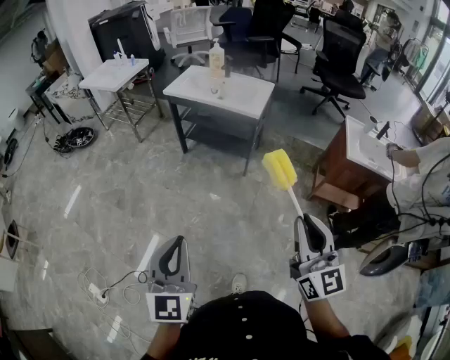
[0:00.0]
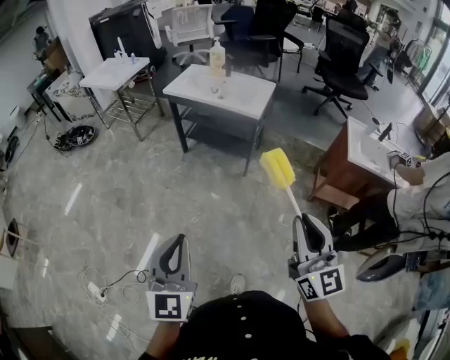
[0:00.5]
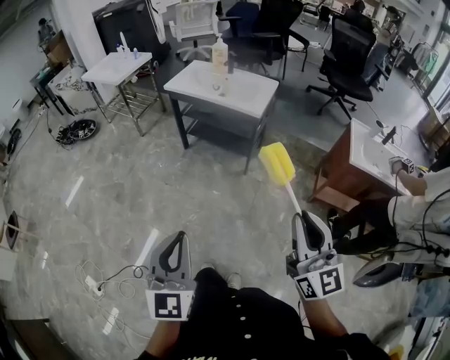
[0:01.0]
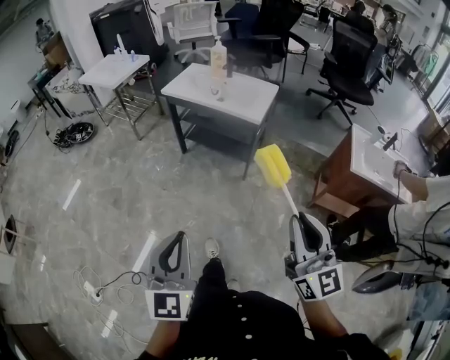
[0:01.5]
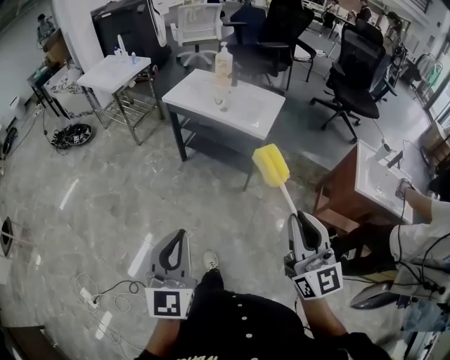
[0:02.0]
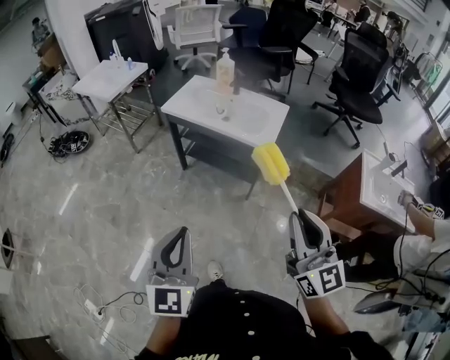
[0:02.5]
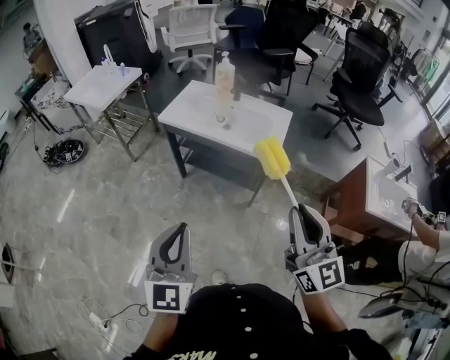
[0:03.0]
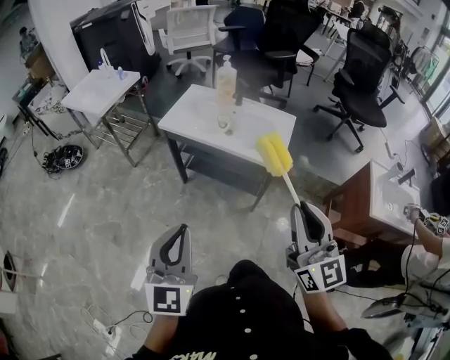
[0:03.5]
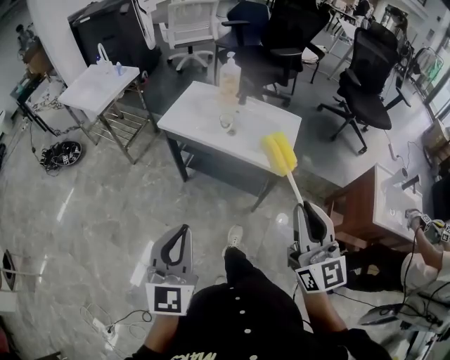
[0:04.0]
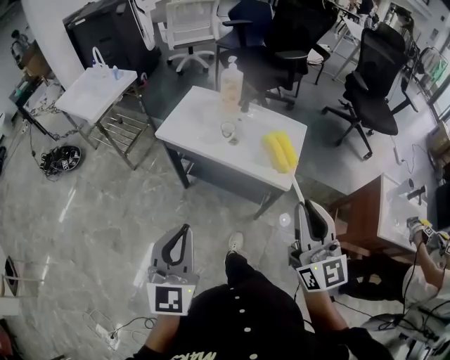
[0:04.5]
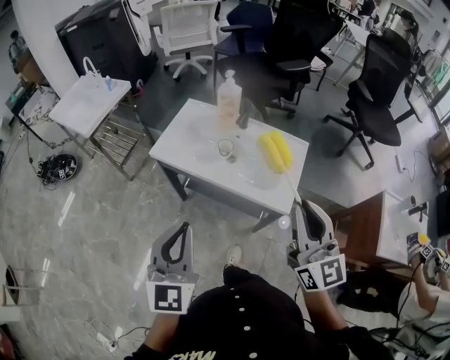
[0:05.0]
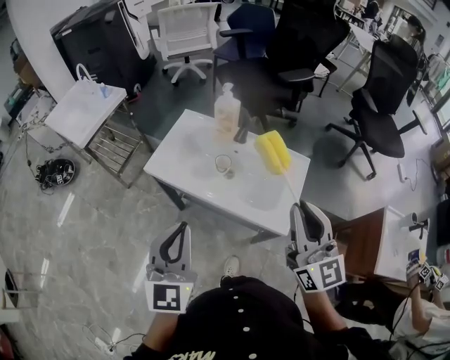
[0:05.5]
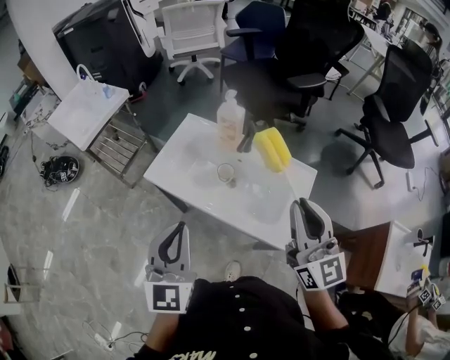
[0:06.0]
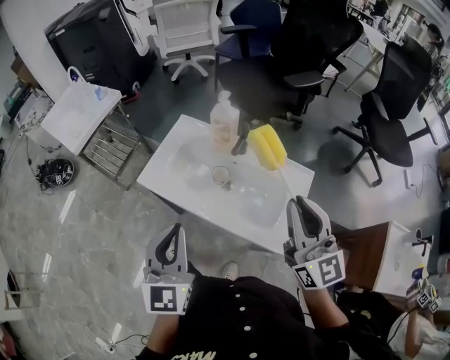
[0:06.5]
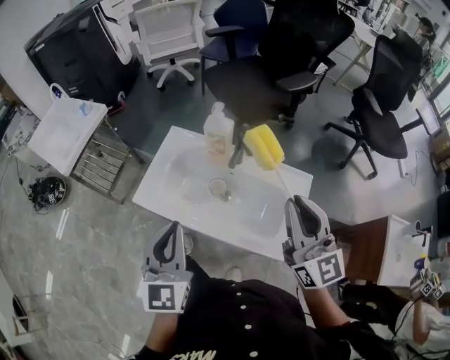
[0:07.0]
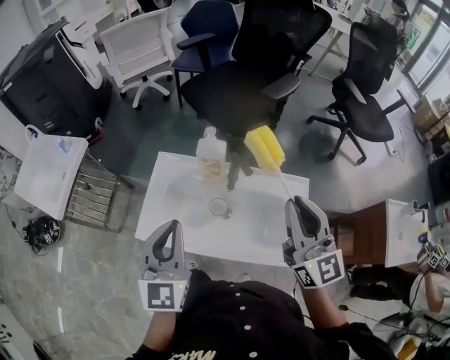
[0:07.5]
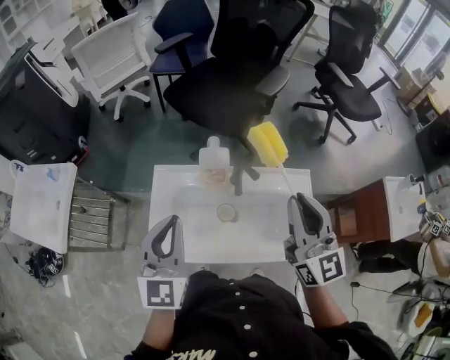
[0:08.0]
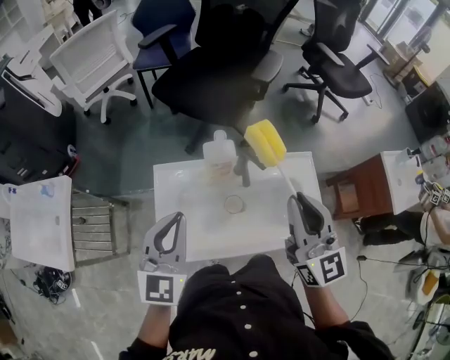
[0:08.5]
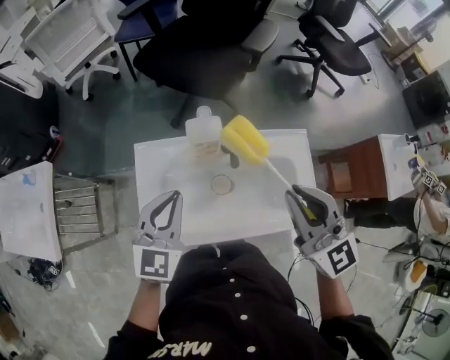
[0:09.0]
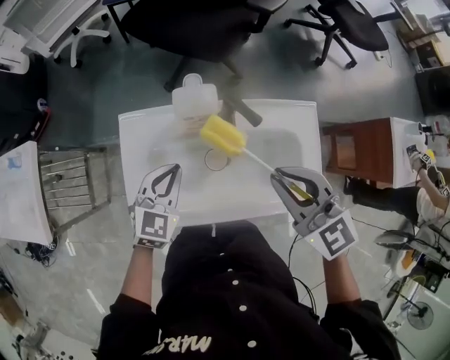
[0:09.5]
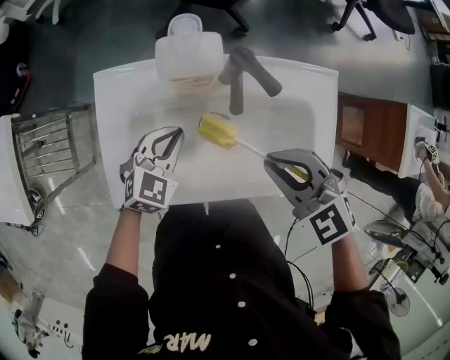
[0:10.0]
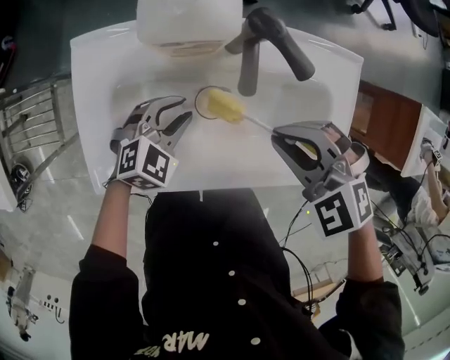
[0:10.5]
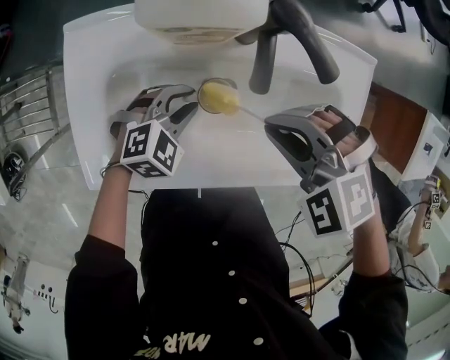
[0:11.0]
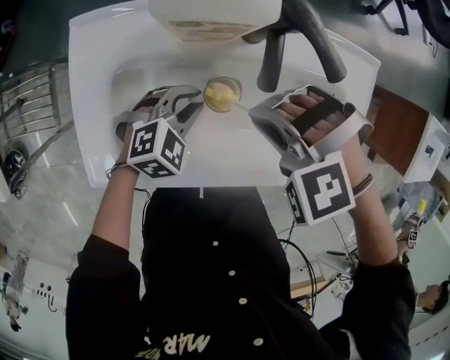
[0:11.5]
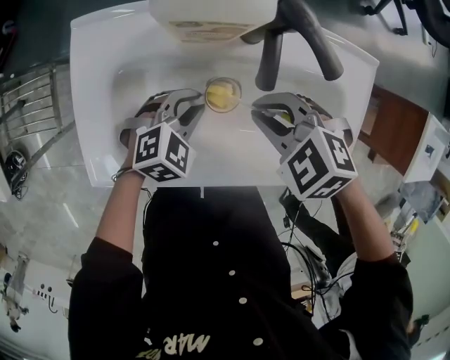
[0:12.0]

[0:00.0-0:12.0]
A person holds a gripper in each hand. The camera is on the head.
0:00.0 to 0:02.0: The grippers both shift forward by approximately 20 cm.
0:02.0 to 0:04.0: Both grippers move forward, approximately 30 cm.
0:04.0 to 0:06.0: Both grippers move forward, some 35 cm.
0:06.0 to 0:08.0: The left gripper moves some 30 cm, and changes its angle by some 30 degrees, while the right gripper shifts by roughly 20 cm, and swivels roughly 30 degrees.
0:08.0 to 0:10.0: The two grippers go some 30 cm downward. The right gripper tilts its fingers about 50 degrees downward, while the left gripper tips its fingers downward by roughly 40 degrees.
0:10.0 to 0:12.0: The grippers both shift downward by roughly 10 cm. The right gripper rotates some 30 degrees.

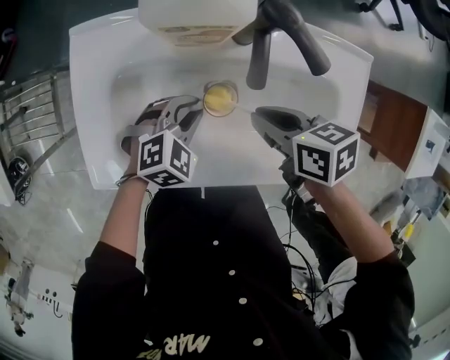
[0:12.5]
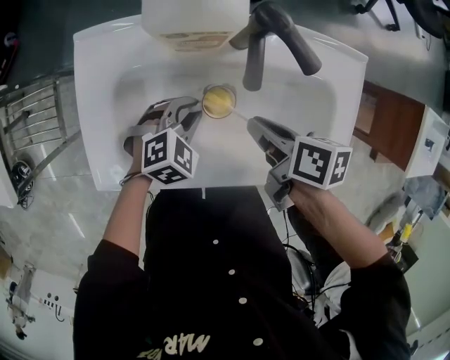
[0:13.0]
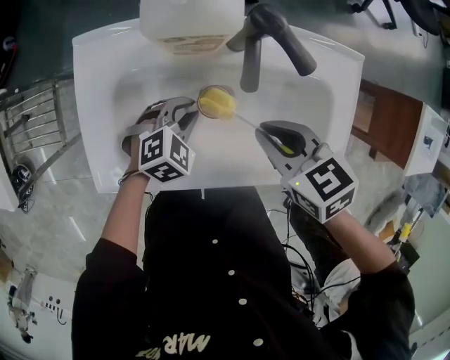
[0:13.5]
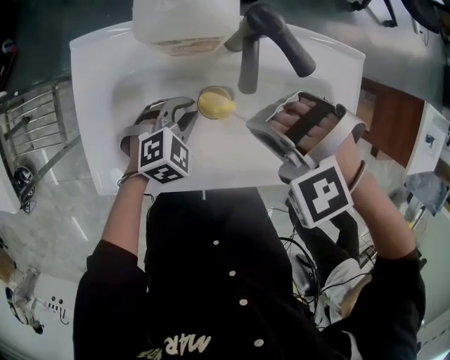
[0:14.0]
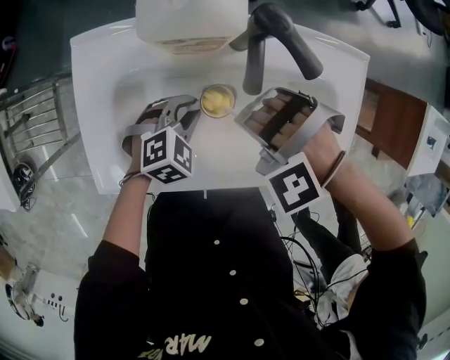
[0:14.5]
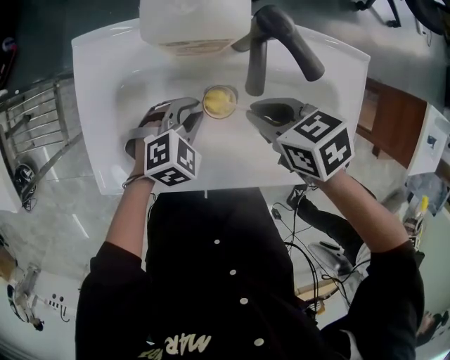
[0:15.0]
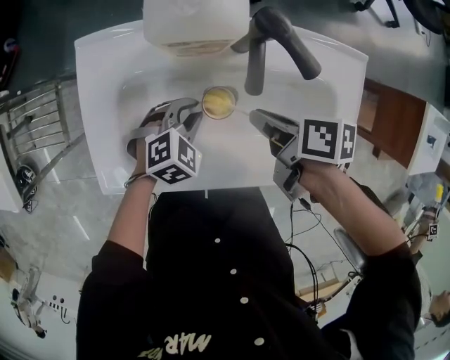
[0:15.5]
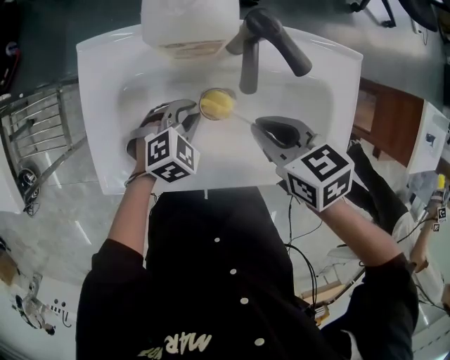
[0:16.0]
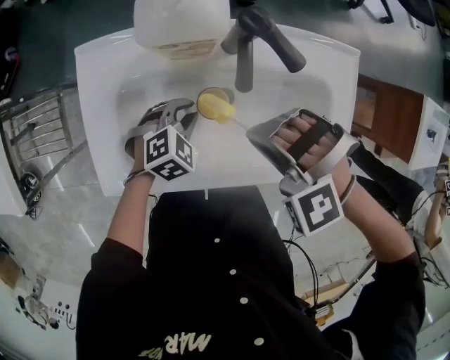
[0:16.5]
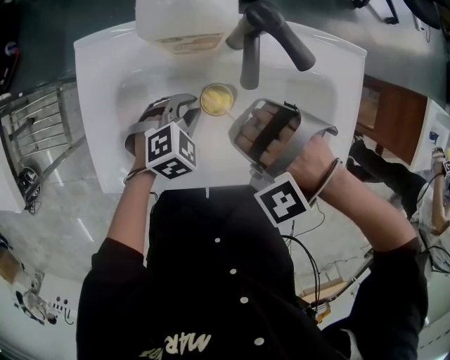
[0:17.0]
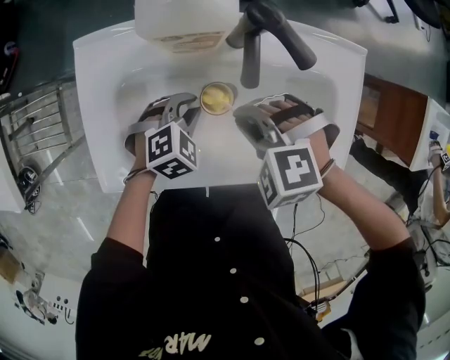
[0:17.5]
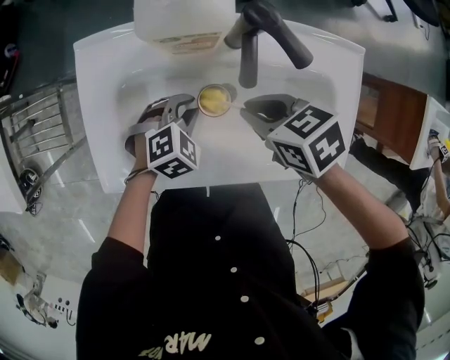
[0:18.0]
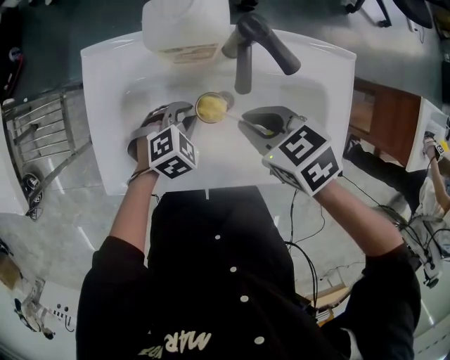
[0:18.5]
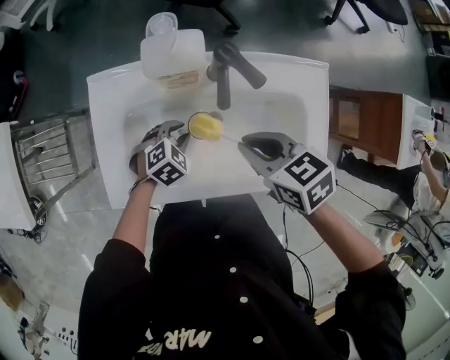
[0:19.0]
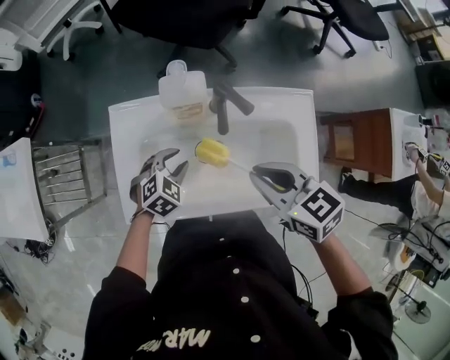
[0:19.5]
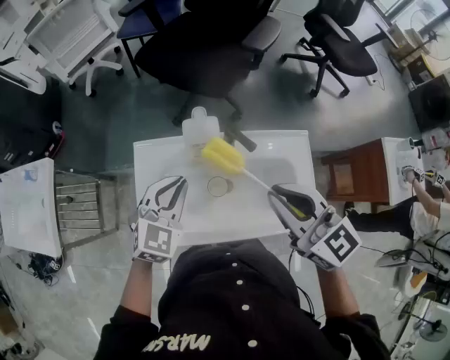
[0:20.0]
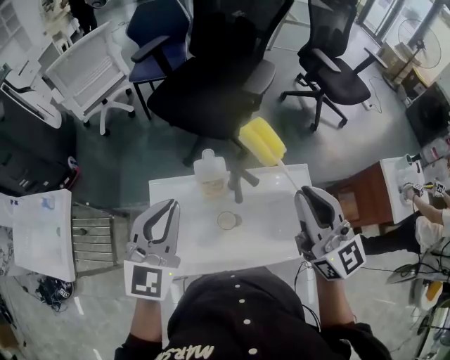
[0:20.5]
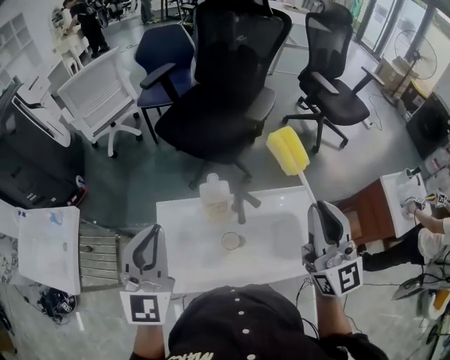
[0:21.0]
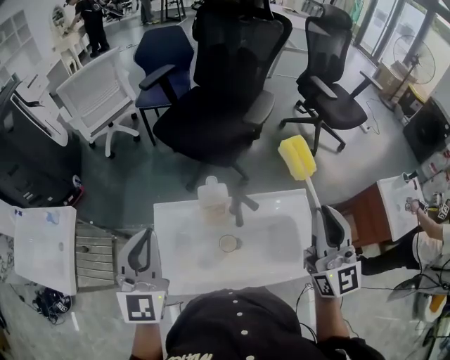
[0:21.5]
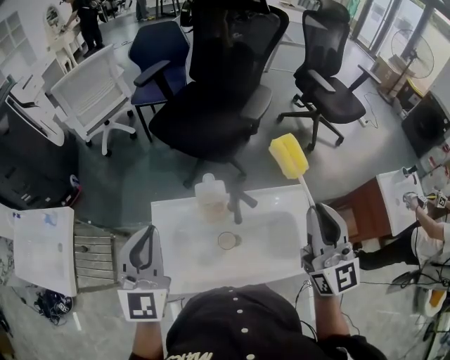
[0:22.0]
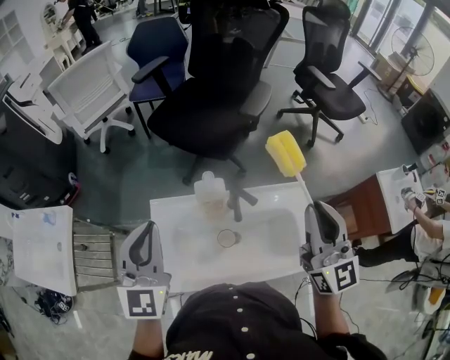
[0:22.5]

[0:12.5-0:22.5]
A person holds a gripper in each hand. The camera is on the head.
0:12.5 to 0:14.5: The right gripper shifts by about 5 cm, and twists approximately 120 degrees counterclockwise, seen from behind.
0:14.5 to 0:16.5: The right gripper travels upward by about 5 cm.
0:16.5 to 0:18.5: The right gripper rotates around the line of its fingers by roughly 80 degrees, clockwise from behind.
0:18.5 to 0:20.5: The two grippers go about 40 cm upward. The right gripper tilts its fingers about 60 degrees upward, while the left gripper tilts its fingers approximately 60 degrees upward.
0:20.5 to 0:22.5: The left gripper moves to the left, roughly 5 cm.

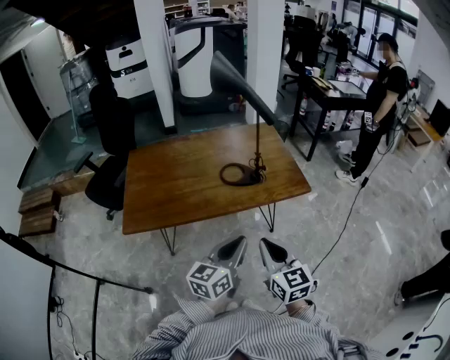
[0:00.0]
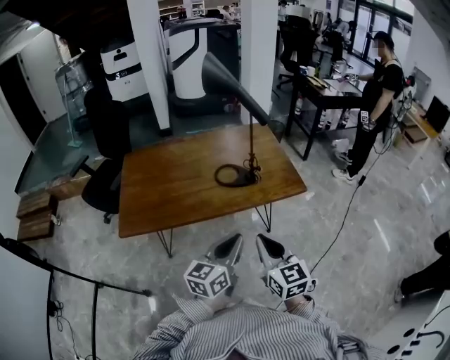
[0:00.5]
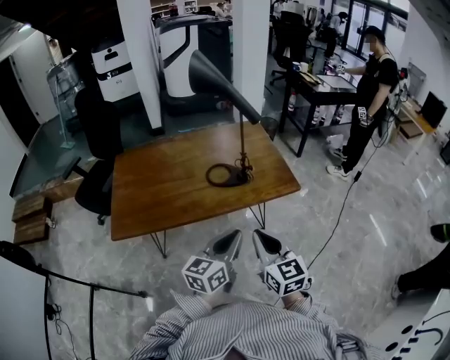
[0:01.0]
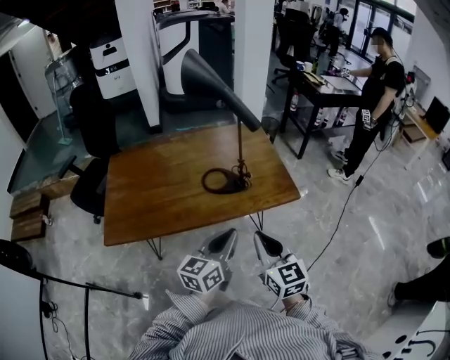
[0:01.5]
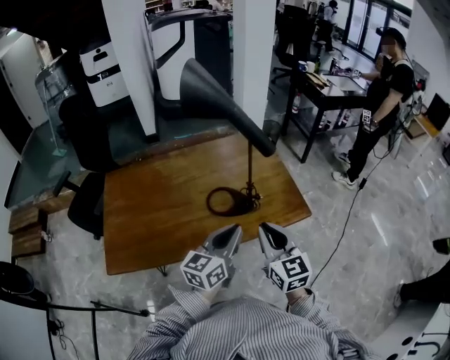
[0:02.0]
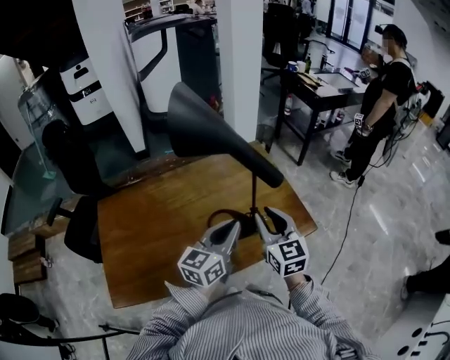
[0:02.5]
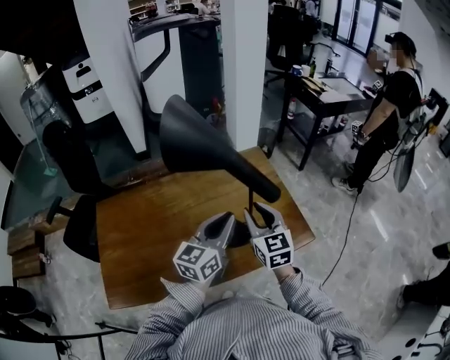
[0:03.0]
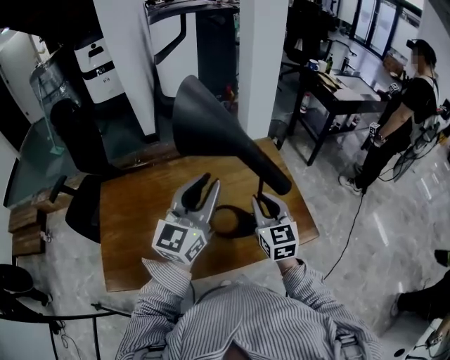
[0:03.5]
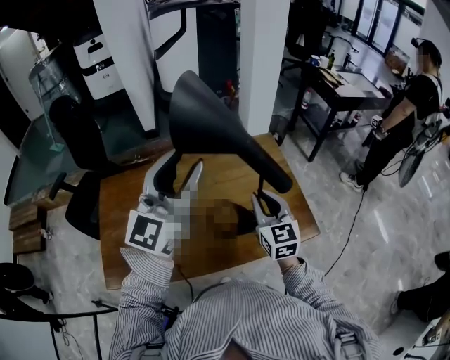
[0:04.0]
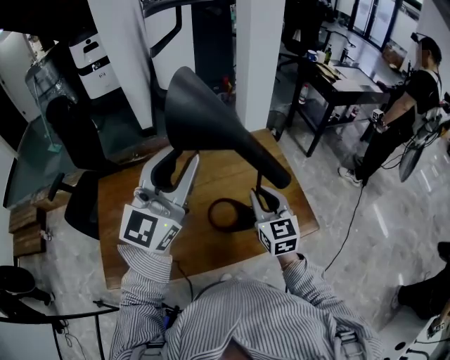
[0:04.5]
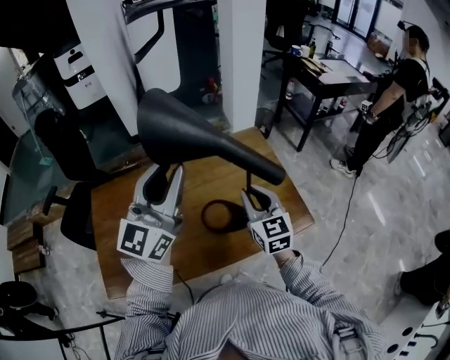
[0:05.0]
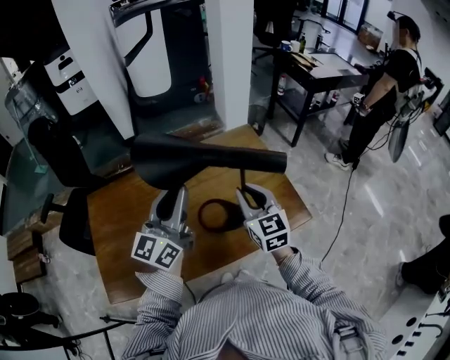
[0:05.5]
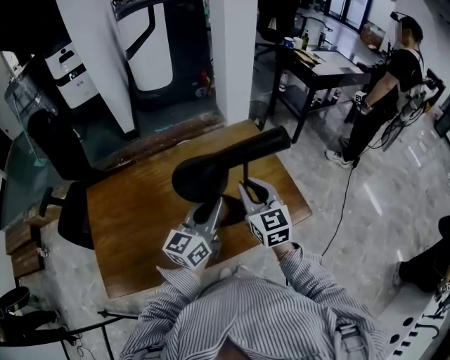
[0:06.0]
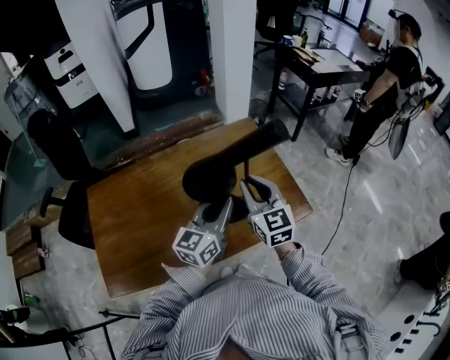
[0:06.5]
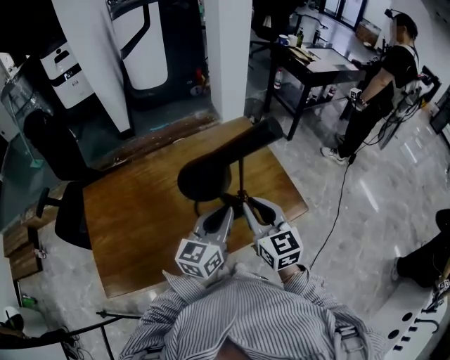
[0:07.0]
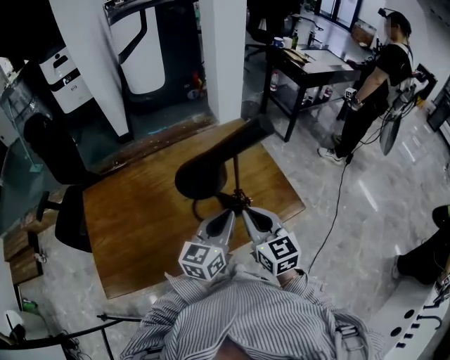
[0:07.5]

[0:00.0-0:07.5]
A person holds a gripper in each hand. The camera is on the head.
0:00.0 to 0:02.0: Both grippers move forward, roughly 25 cm.
0:02.0 to 0:04.0: The right gripper travels forward by roughly 20 cm. Meanwhile the left gripper heads upward, forward and to the left, covering approximately 30 cm, swivels approximately 40 degrees, and opens its fingers.
0:04.0 to 0:05.5: The left gripper goes some 10 cm downward, changes its angle by roughly 20 degrees, and closes up.
0:05.5 to 0:07.5: The left gripper moves to the right, downward and backward, approximately 20 cm, and rotates roughly 20 degrees; the right gripper is displaced backward by approximately 10 cm.
